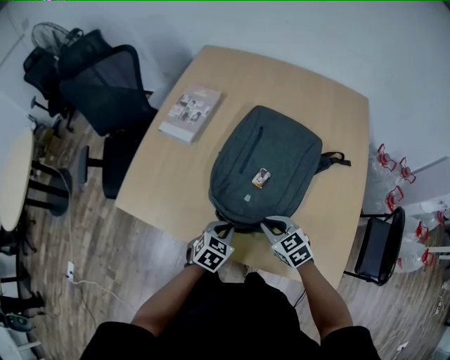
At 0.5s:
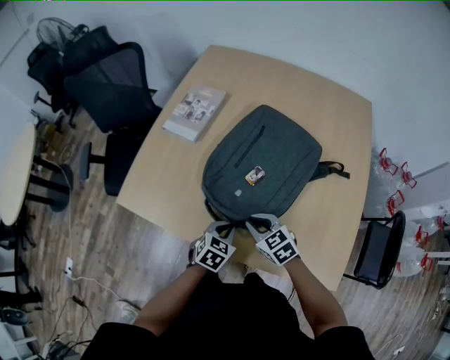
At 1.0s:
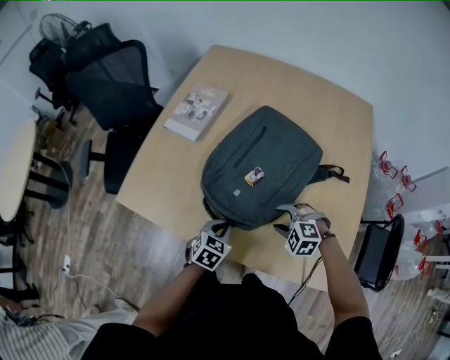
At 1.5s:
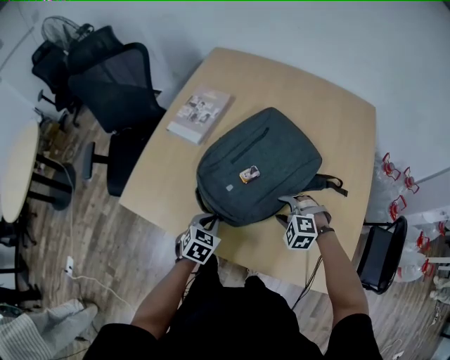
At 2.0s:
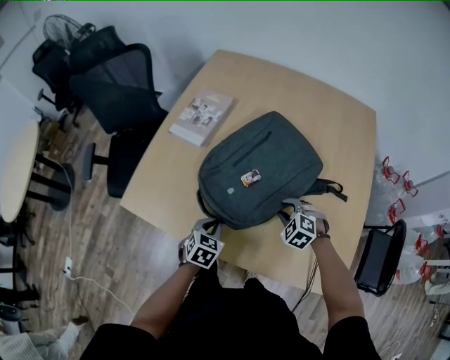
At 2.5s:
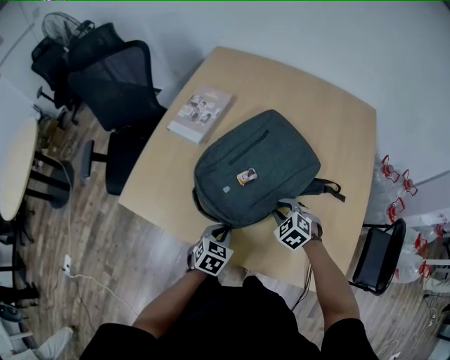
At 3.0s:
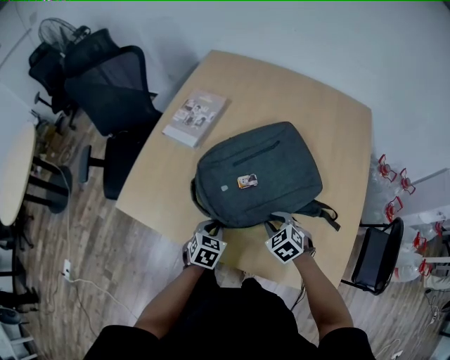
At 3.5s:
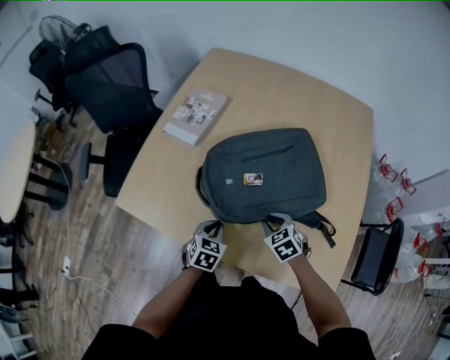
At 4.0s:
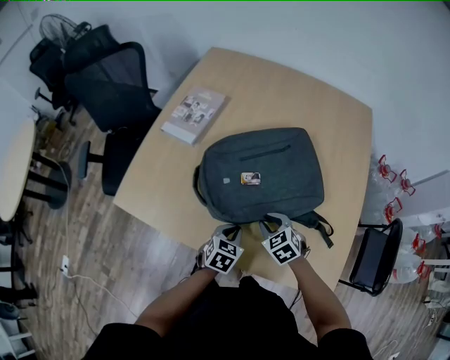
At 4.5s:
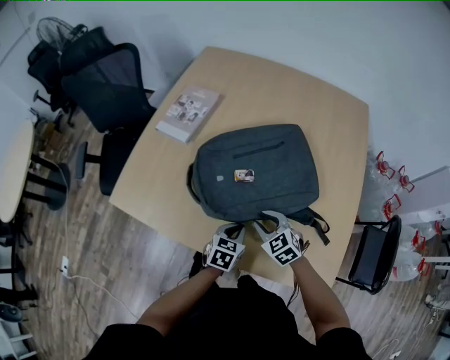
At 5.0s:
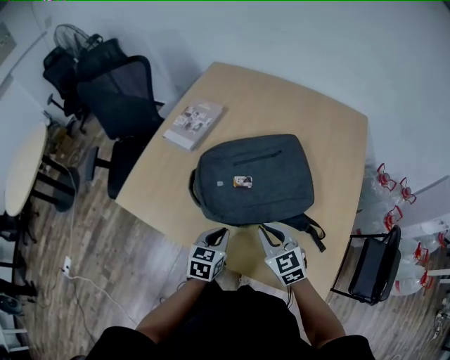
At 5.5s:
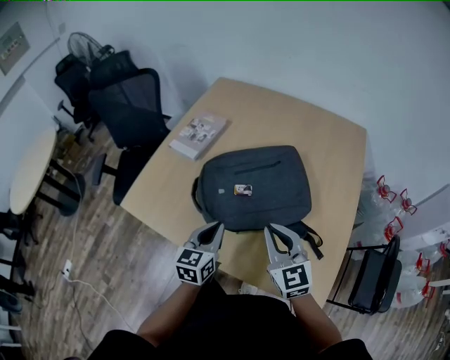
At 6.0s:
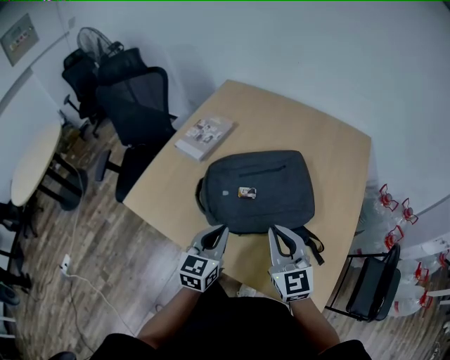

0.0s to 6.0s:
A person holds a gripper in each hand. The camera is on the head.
0.0s to 2.0s: The right gripper shifts about 5 cm forward, rotates roughly 40 degrees, and opens and closes again; the left gripper moves to the left, approximately 5 cm.
2.0s to 4.0s: The right gripper ends up roughly 5 cm from where it was, and rotates about 30 degrees, while the left gripper is displaced to the right by approximately 10 cm.
4.0s to 6.0s: The two grippers go some 20 cm upward. The right gripper tilts its fingers approximately 50 degrees upward, and closes; the left gripper tilts its fingers roughly 30 degrees upward.

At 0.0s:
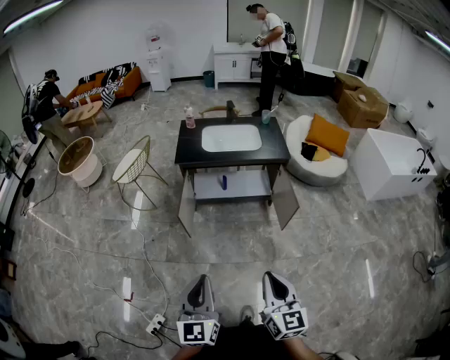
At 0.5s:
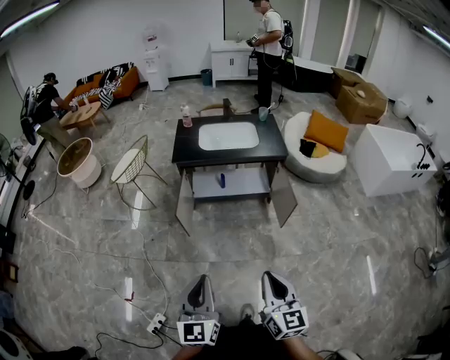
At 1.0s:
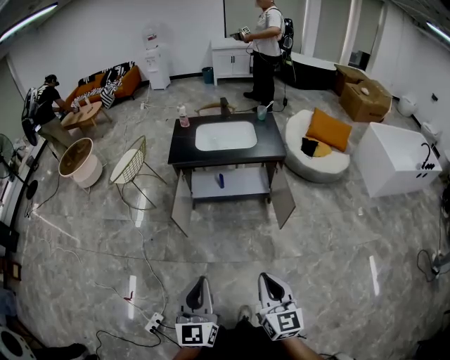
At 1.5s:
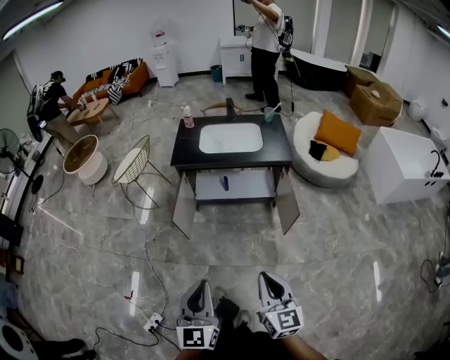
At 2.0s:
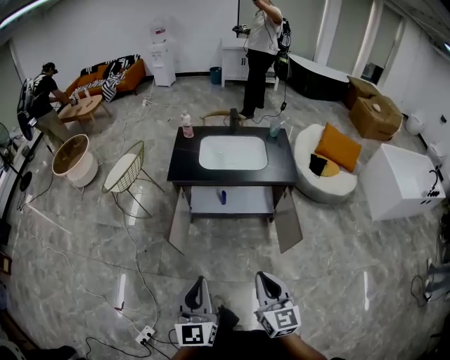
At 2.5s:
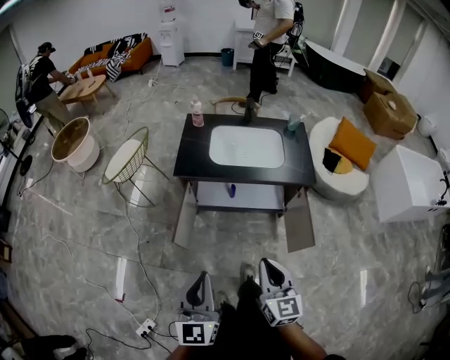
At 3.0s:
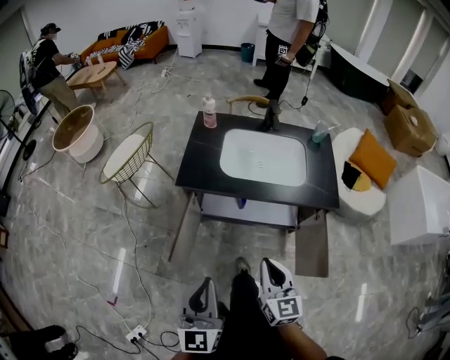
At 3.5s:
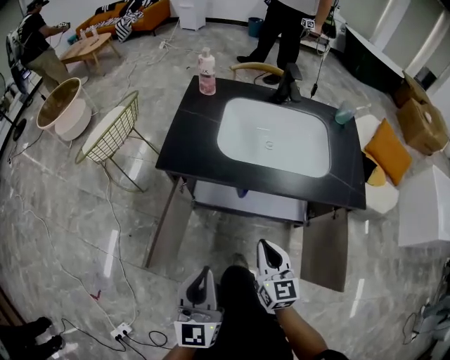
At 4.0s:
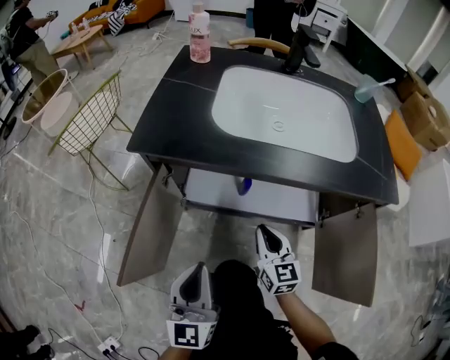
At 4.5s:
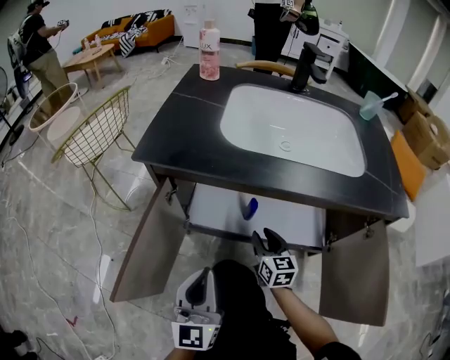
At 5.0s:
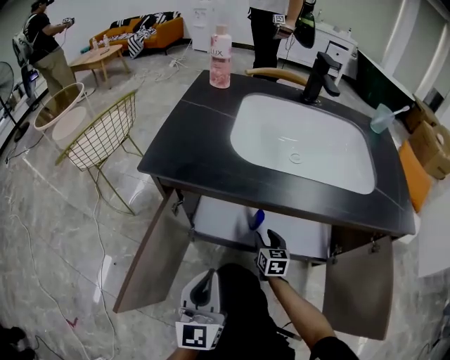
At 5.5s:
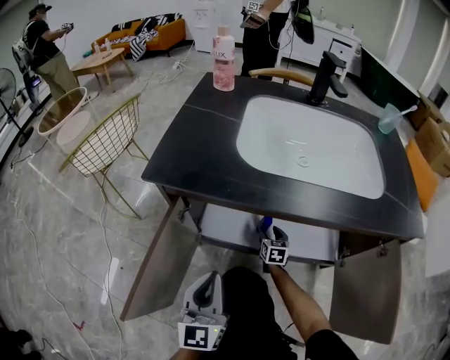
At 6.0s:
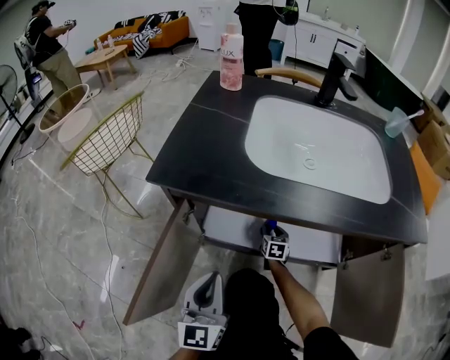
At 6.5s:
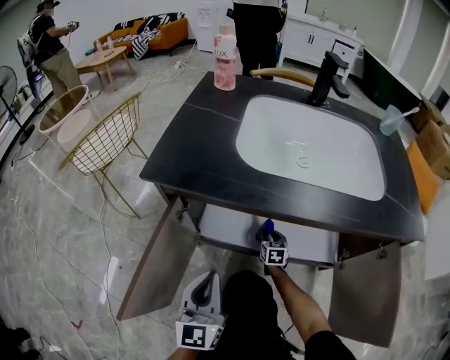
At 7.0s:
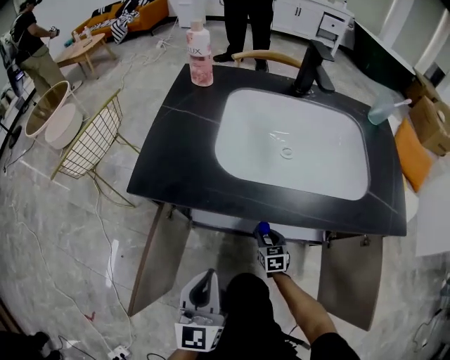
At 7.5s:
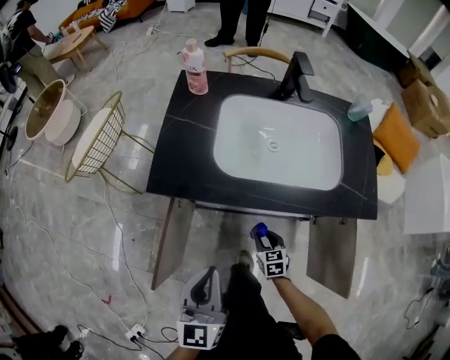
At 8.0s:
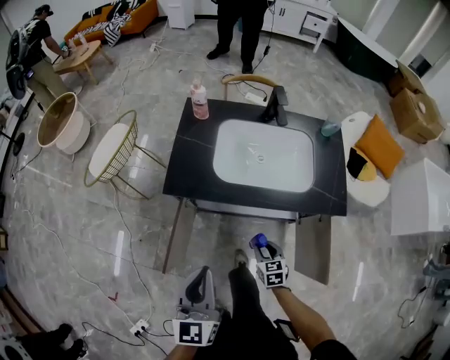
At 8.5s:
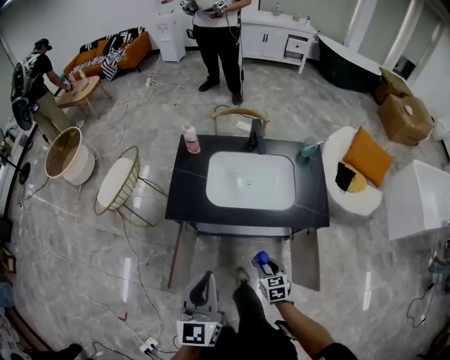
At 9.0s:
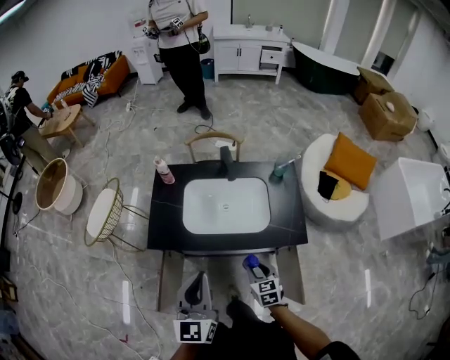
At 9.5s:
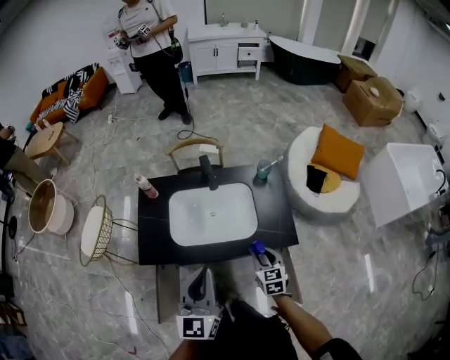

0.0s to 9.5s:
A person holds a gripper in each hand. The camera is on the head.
0.0s to 2.0s: Both grippers move forward, about 20 cm.
2.0s to 4.0s: Both grippers travel together downward and forward, some 60 cm.
4.0s to 5.5s: The left gripper heads forward and downward, covering some 10 cm. Meanwhile the right gripper moves downward and forward, approximately 30 cm, swivels some 20 degrees, and opens its fingers.
5.5s to 7.5s: The left gripper is displaced upward by about 20 cm. Meanwhile the right gripper is displaced upward and backward by about 25 cm.
7.5s to 9.5s: The two grippers go approximately 40 cm upward and to the right.

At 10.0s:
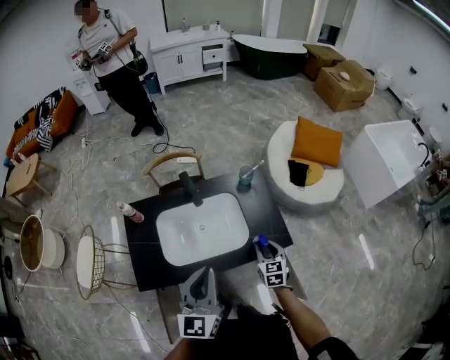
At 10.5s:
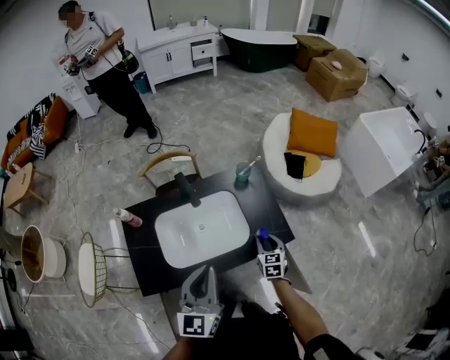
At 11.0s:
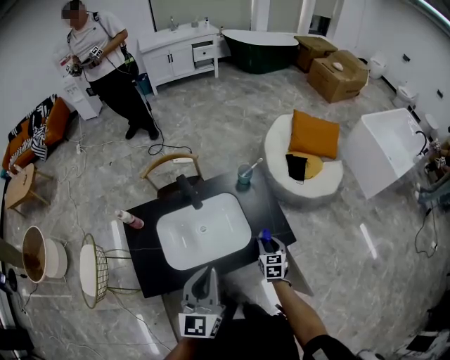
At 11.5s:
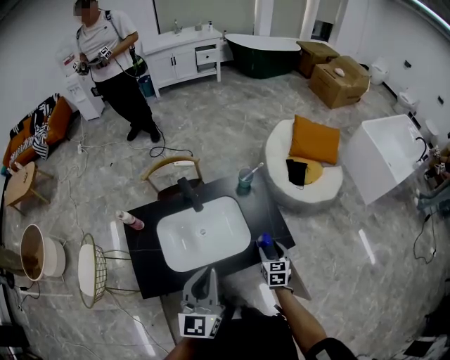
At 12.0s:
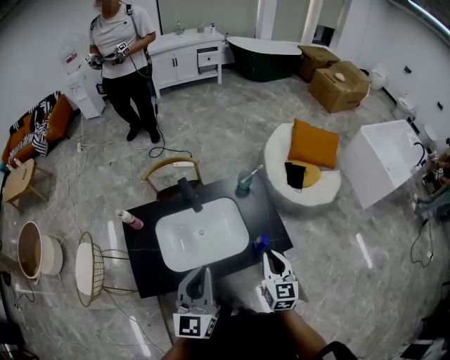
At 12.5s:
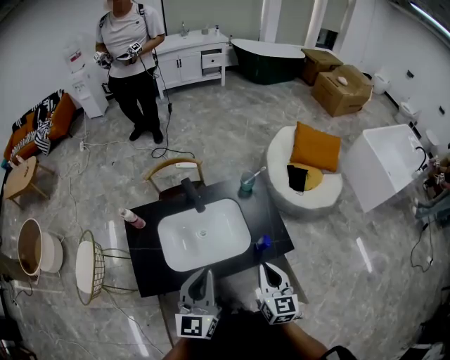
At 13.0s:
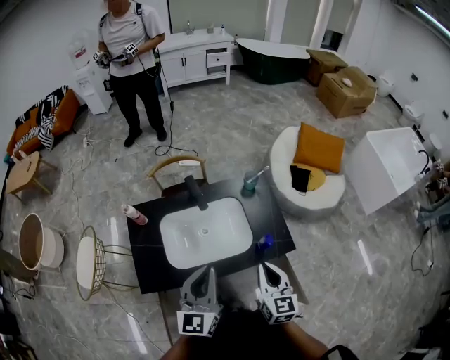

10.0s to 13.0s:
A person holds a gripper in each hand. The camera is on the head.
10.0s to 11.5s: The right gripper opens up.
11.5s to 13.0s: The right gripper moves upward and backward, some 20 cm, changes its angle by roughly 20 degrees, and closes.

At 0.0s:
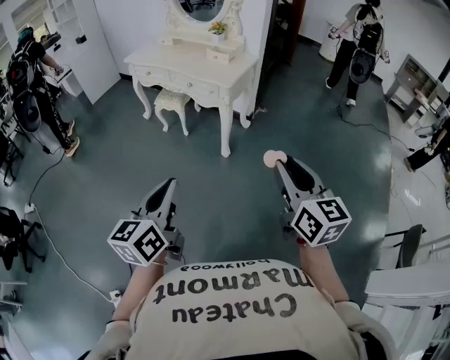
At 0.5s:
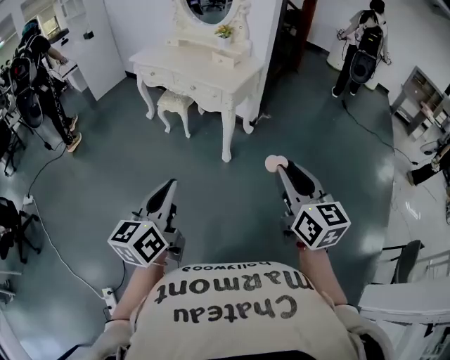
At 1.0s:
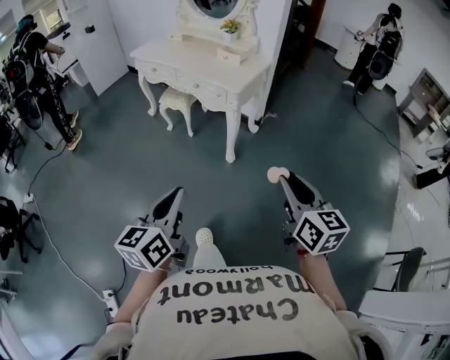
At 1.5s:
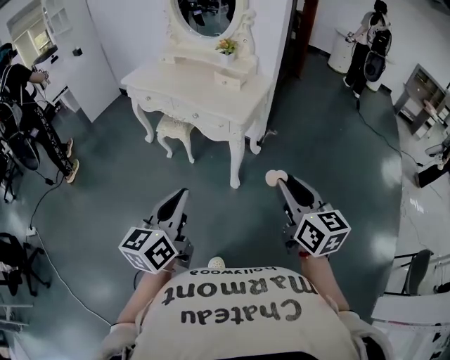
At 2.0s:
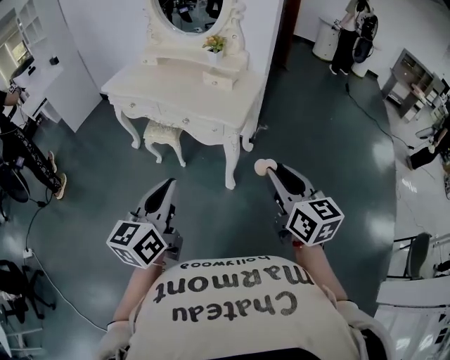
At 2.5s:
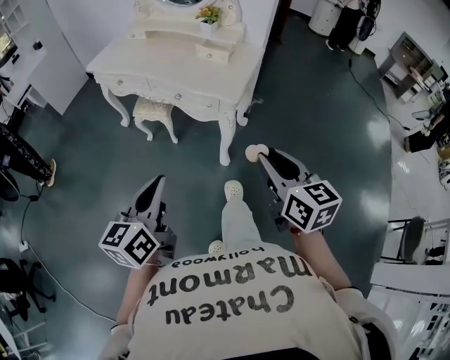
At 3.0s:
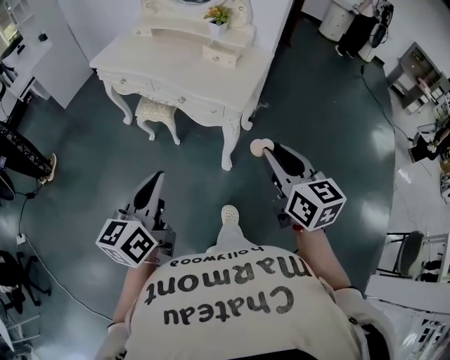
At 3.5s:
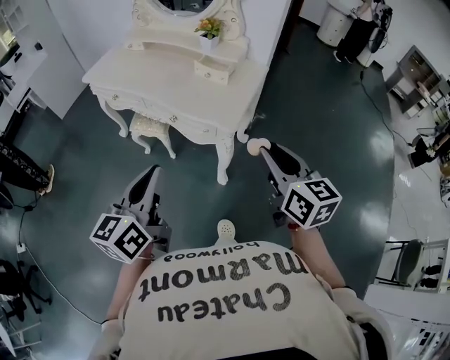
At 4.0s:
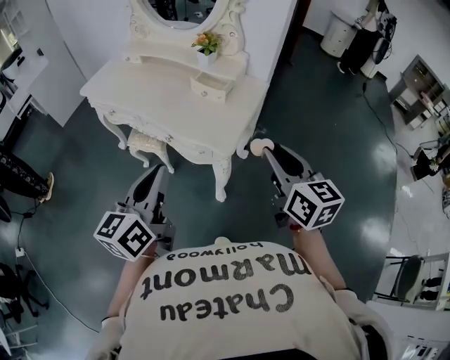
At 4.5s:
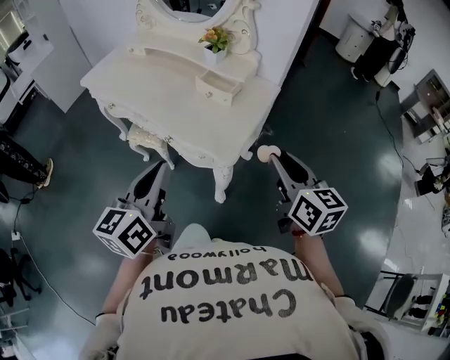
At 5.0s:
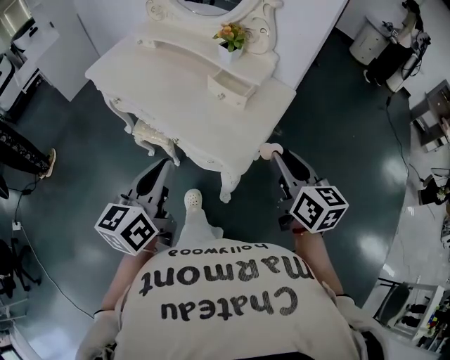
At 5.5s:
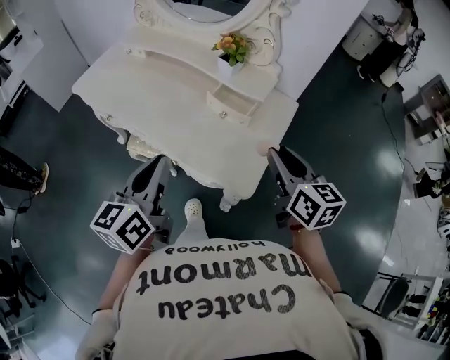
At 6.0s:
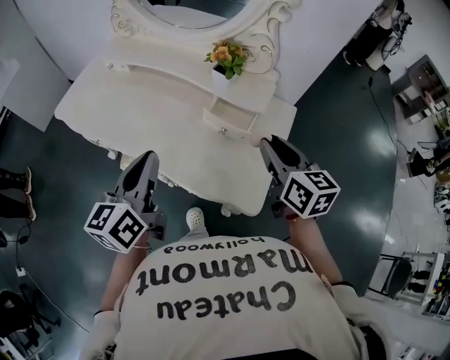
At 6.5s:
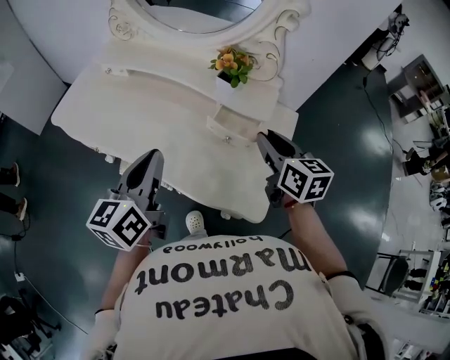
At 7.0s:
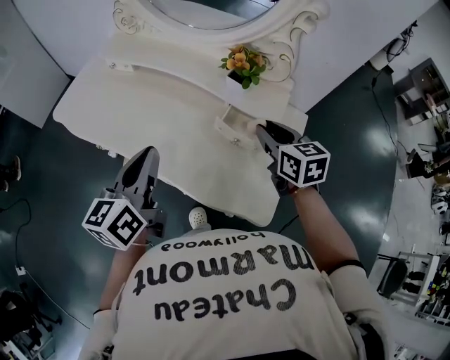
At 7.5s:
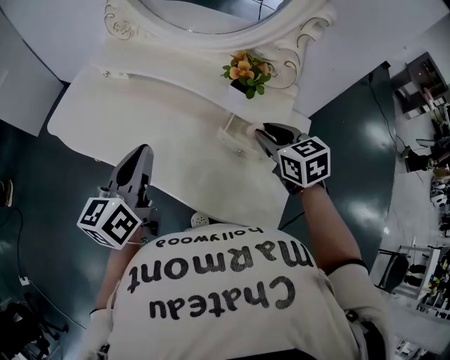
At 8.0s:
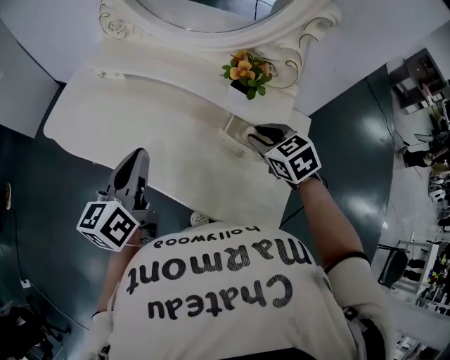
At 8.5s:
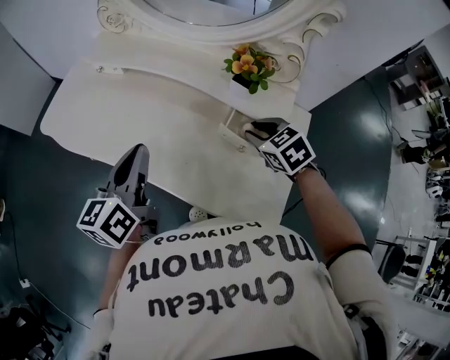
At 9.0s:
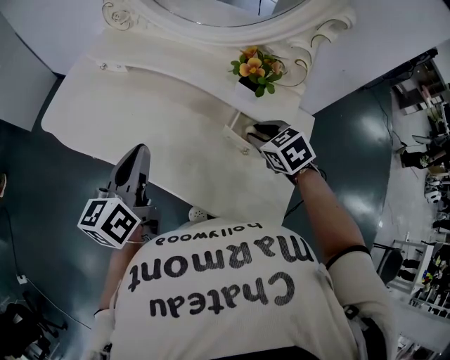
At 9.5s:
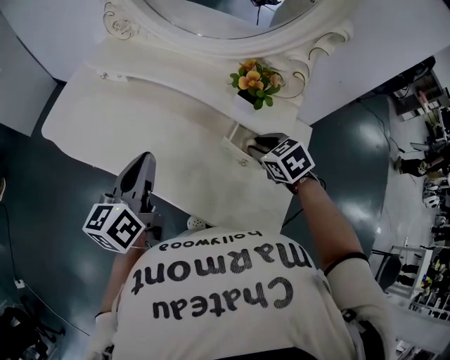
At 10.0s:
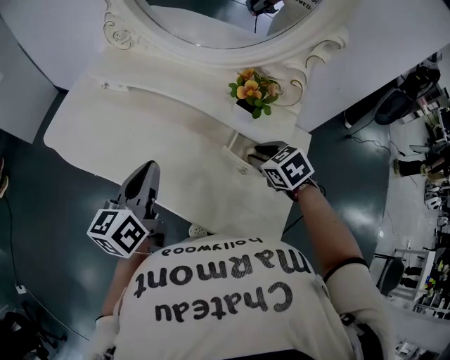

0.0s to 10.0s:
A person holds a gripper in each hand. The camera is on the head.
0.0s to 2.0s: Both grippers travel together forward, about 30 cm.
2.0s to 4.0s: The two grippers go about 20 cm forward.
4.0s to 6.0s: Both grippers travel together forward, about 30 cm.
6.0s to 8.0s: The left gripper heads forward and to the left, covering some 15 cm. The right gripper shifts about 20 cm forward, downward and to the left, and changes its angle by approximately 40 degrees.
8.0s to 10.0s: The grippers move only a little.
